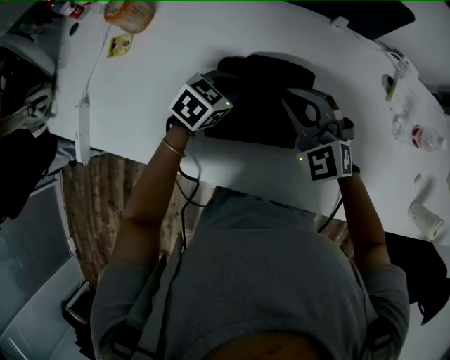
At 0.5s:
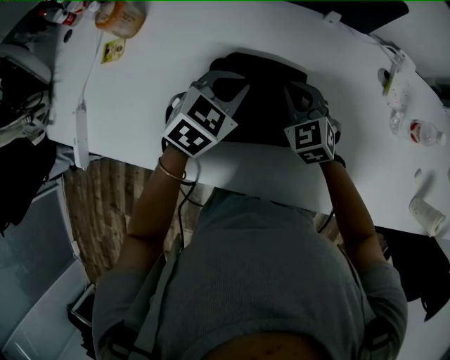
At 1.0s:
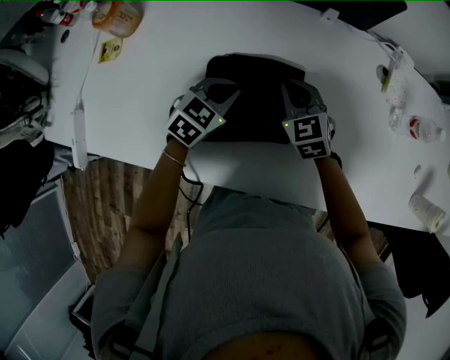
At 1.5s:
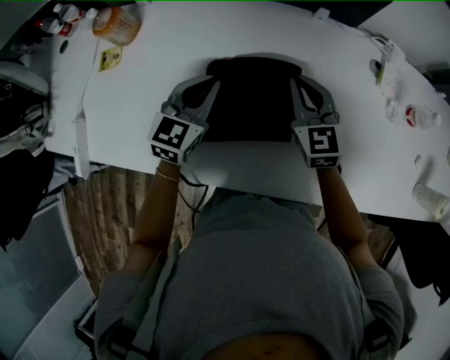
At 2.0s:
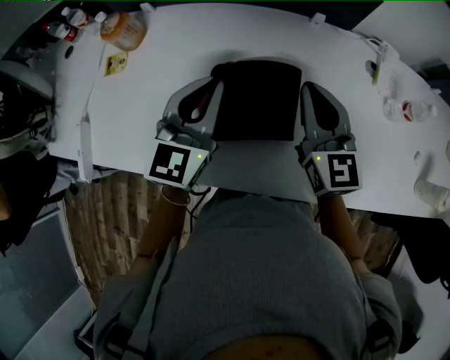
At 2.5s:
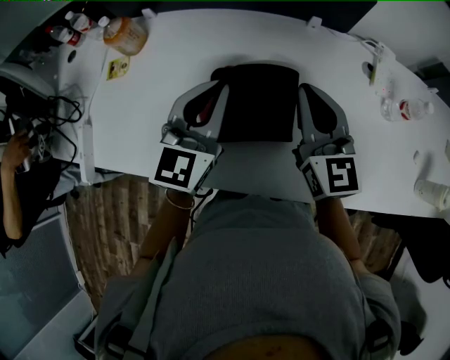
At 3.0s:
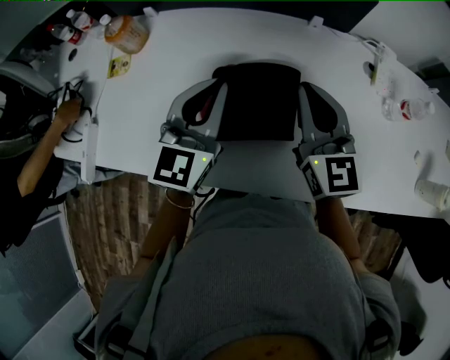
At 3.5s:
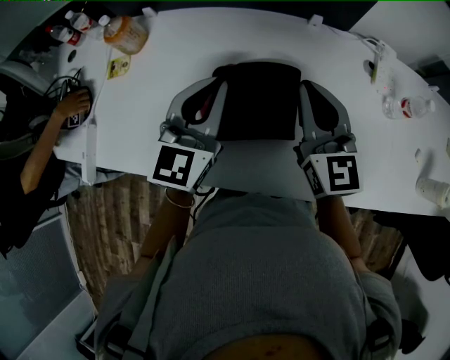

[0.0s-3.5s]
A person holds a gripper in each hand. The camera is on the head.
0.0s to 2.0s: The left gripper moves up and down over roughly 20 cm, changing direction 2 times, and tilts its fingers approximately 40 degrees upward. Meanwhile the right gripper shifts approximately 10 cm upward, and rotates roughly 50 degrees.
2.0s to 3.5s: The grippers stay close to where they were, moving slightly.

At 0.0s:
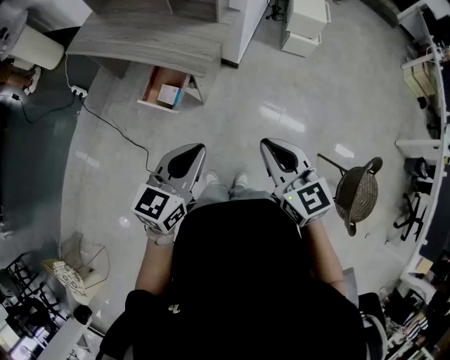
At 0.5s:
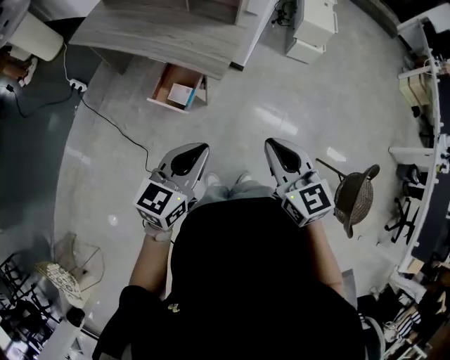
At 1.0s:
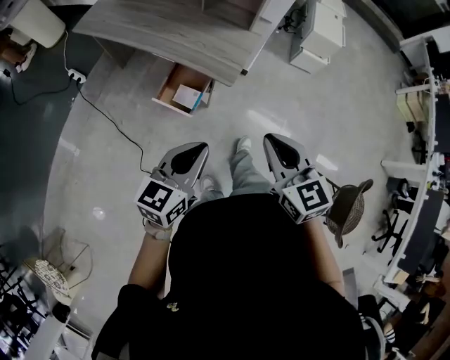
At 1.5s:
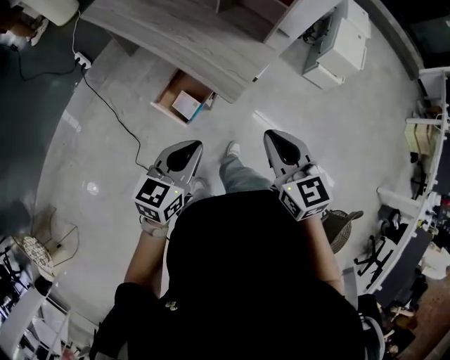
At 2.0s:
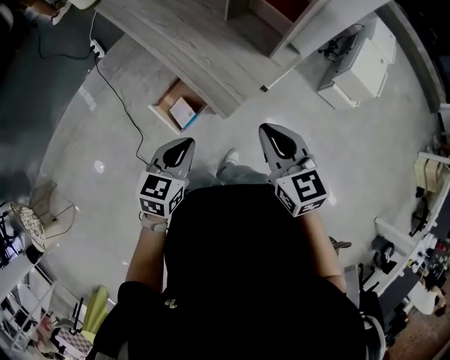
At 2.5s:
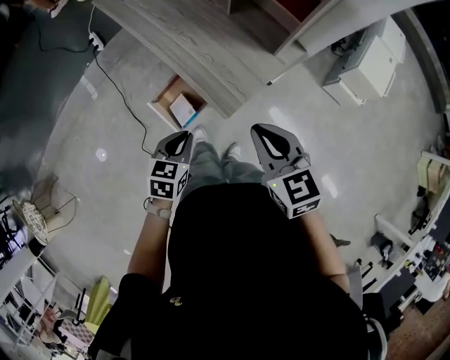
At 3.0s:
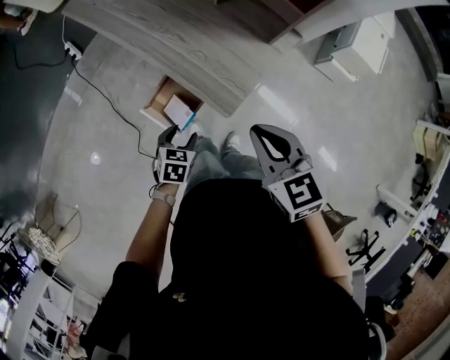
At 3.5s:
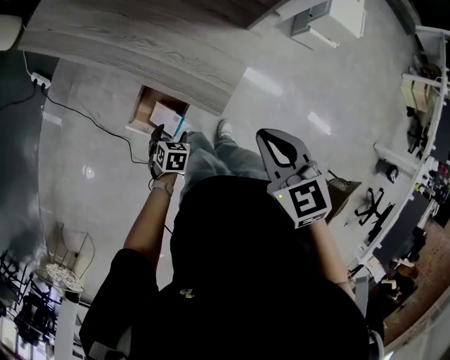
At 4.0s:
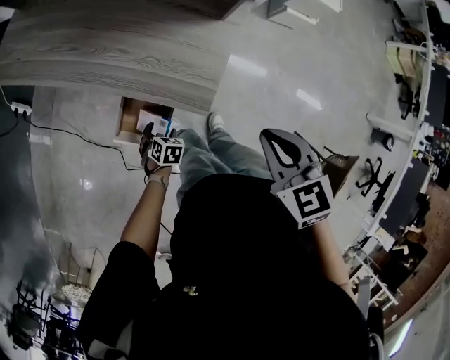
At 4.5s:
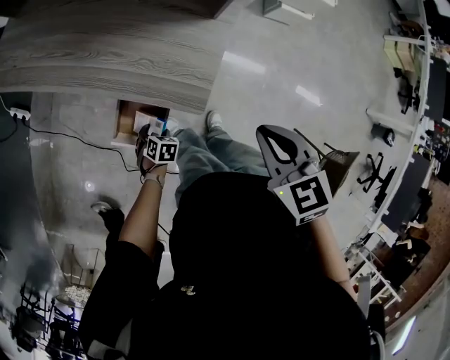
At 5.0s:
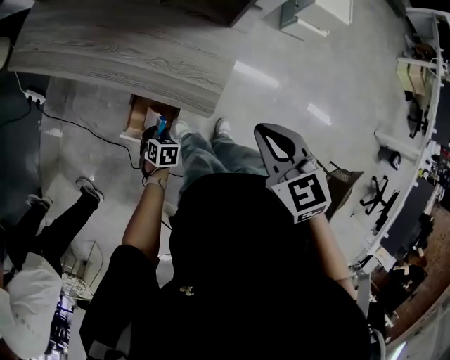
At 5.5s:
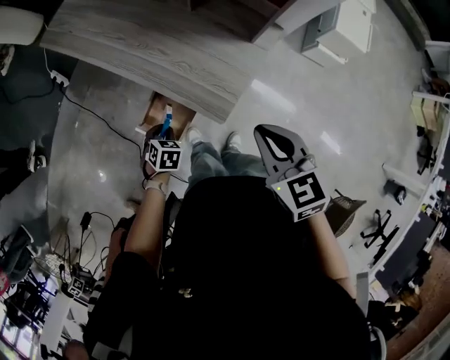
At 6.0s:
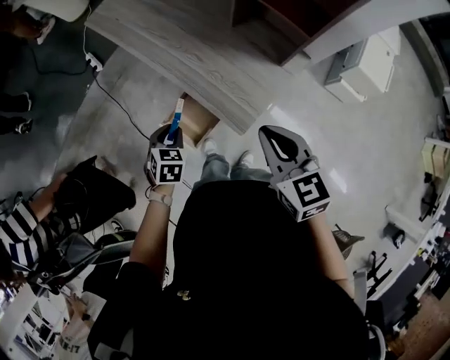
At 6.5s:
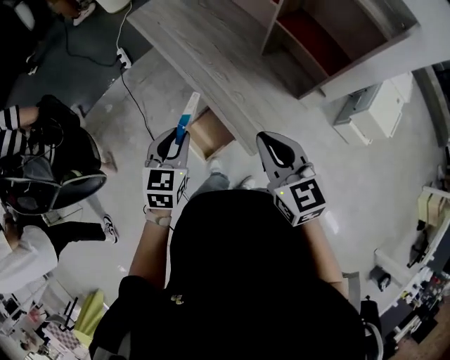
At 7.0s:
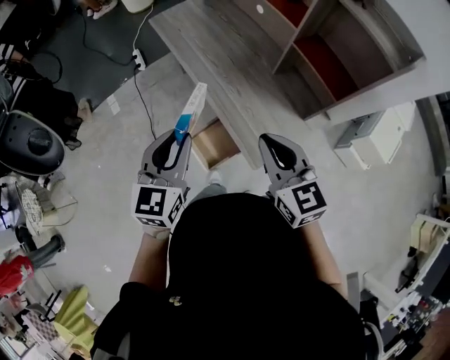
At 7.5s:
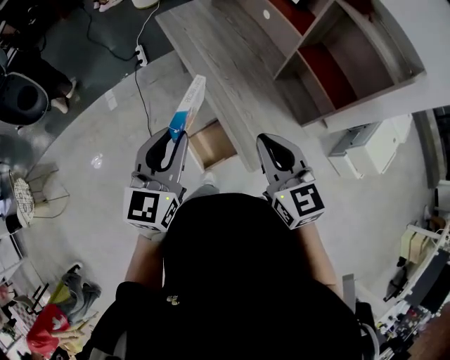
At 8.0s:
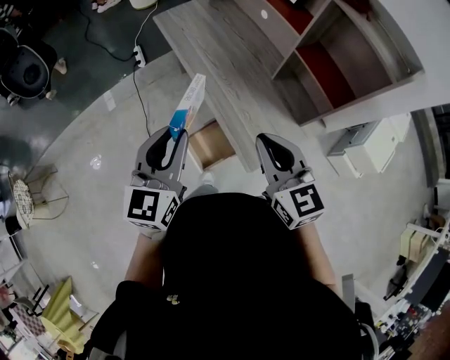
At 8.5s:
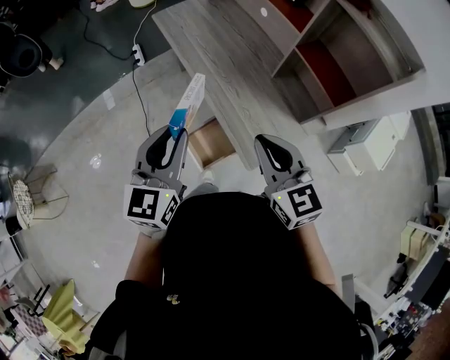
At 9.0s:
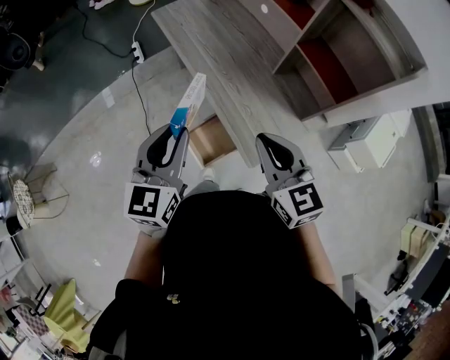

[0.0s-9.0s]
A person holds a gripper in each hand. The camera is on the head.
0.0s to 2.0s: The left gripper shifts about 25 cm forward and downward, and rotates roughly 30 degrees. Meanwhile the right gripper is displaced forward by about 35 cm, and swivels about 20 degrees.
2.0s to 4.5s: The left gripper travels downward by some 40 cm, tips its fingers downward by approximately 40 degrees, and opens up. The right gripper travels downward by about 5 cm, and rotates about 30 degrees.
4.5s to 7.0s: The right gripper moves roughly 20 cm, and tips its fingers upward by some 30 degrees; the left gripper heads upward, covering roughly 50 cm, points its fingers about 60 degrees further upward, and closes its fingers.
7.0s to 9.0s: There are only small adjustments of the grippers.

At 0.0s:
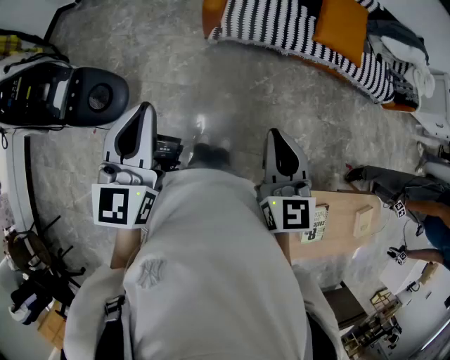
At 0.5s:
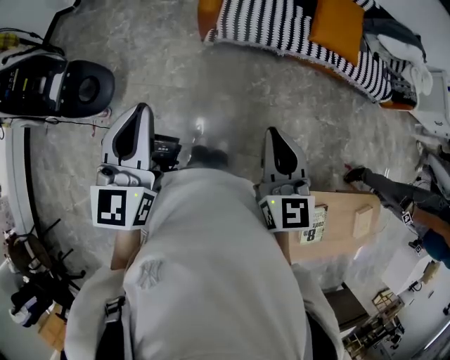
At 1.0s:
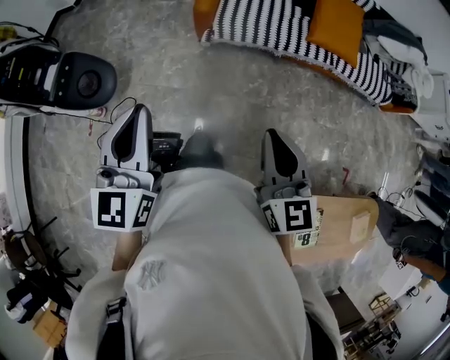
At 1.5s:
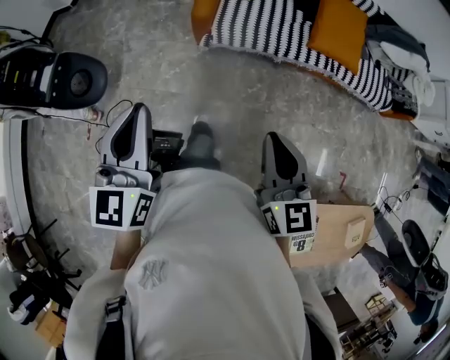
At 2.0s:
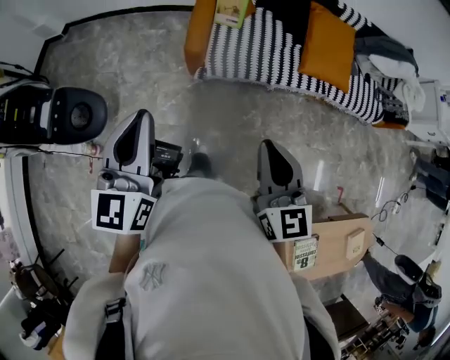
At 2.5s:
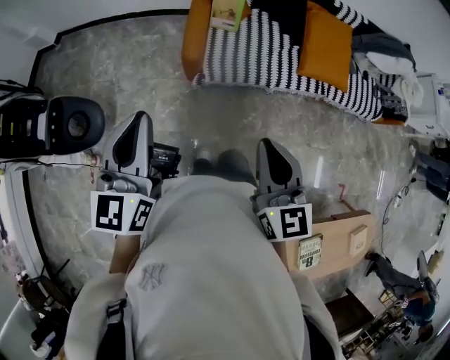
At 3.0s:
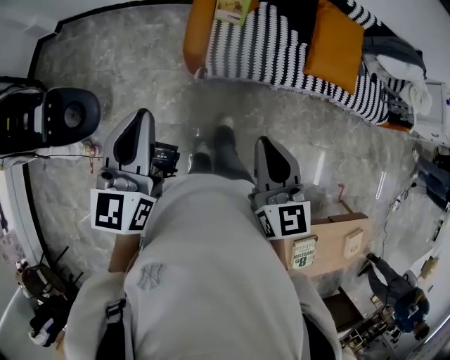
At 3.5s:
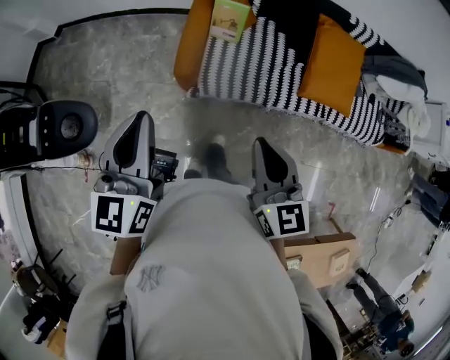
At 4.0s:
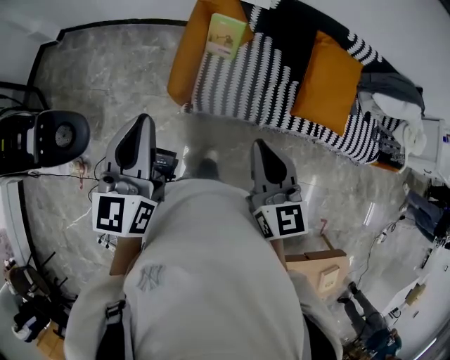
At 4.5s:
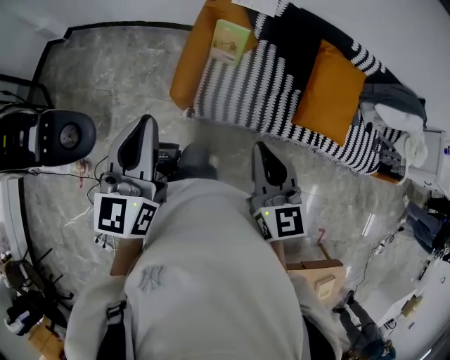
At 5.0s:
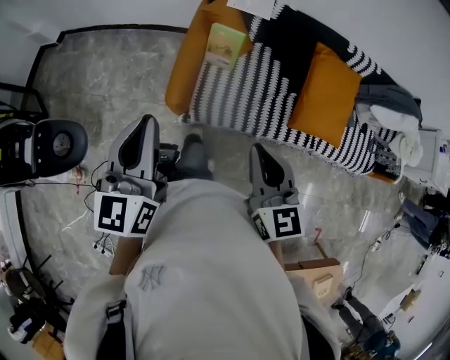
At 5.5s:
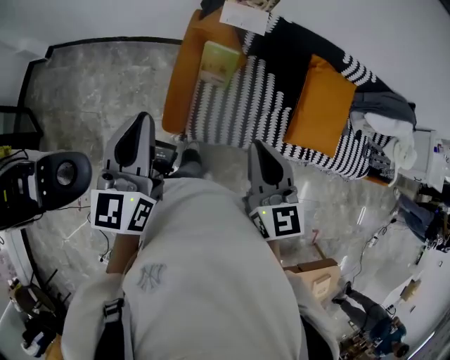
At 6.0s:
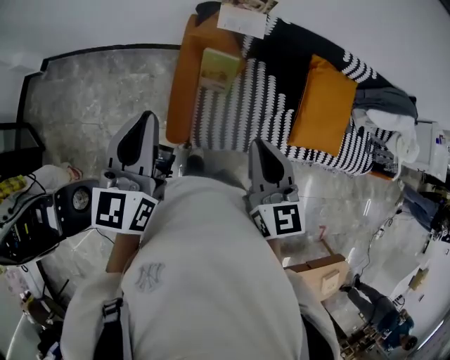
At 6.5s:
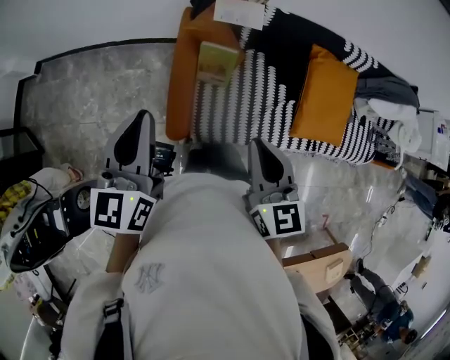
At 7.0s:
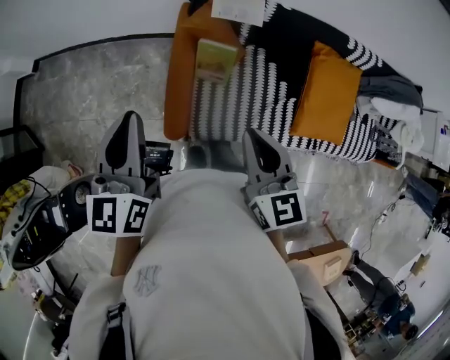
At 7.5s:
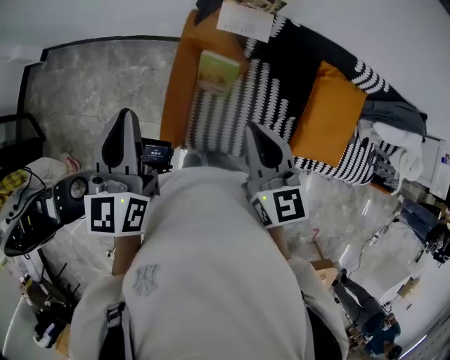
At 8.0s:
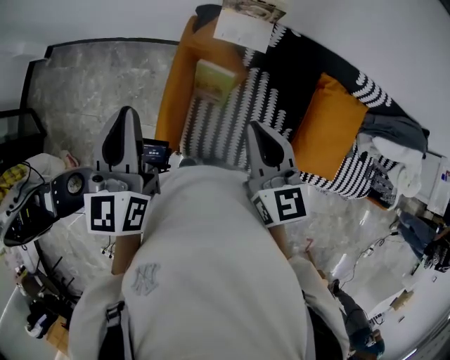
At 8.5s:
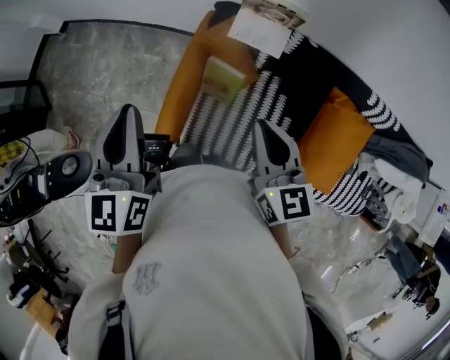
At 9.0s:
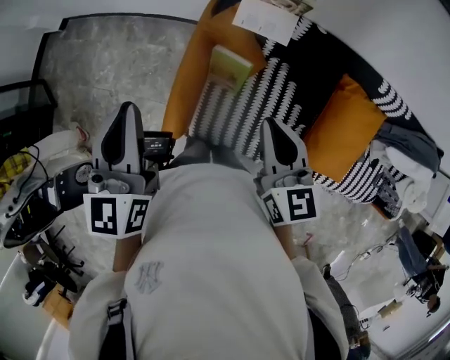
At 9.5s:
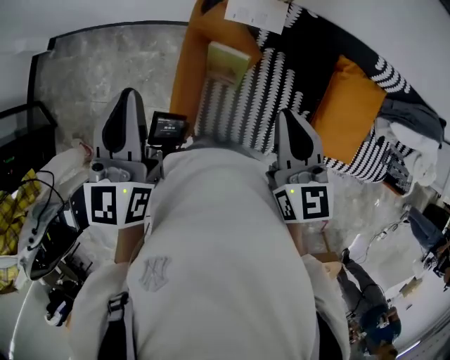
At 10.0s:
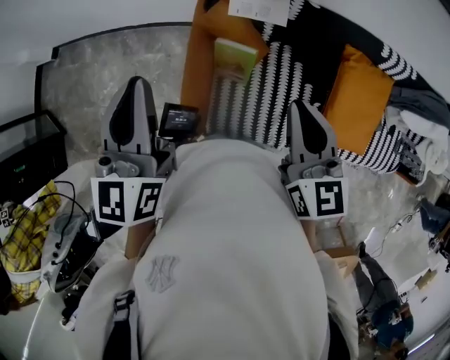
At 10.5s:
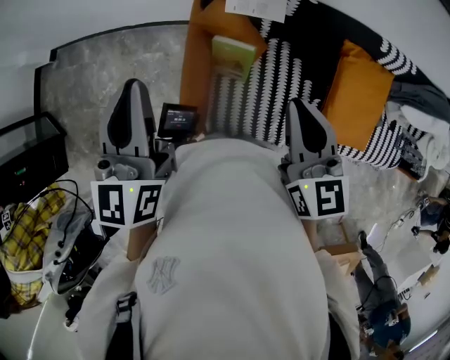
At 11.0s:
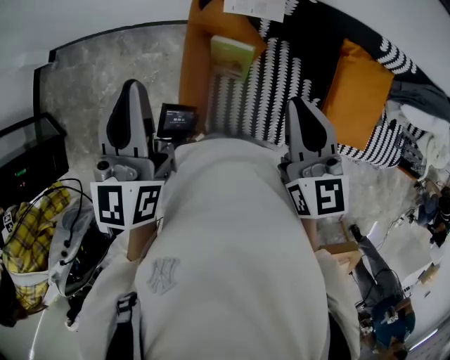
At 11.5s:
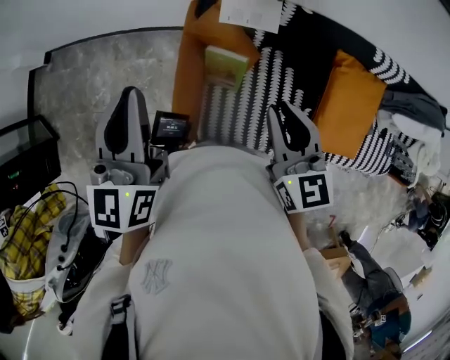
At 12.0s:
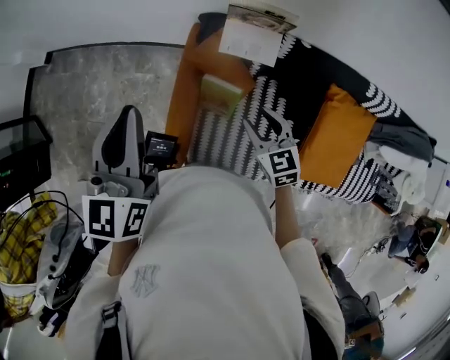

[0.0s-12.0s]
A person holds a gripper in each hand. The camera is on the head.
0.0s to 2.0s: Both grippers move forward, about 15 cm.
2.0s to 4.0s: The right gripper shifts roughly 25 cm forward. Meanwhile the left gripper travels forward and to the right by some 25 cm.
4.0s to 6.0s: Both grippers travel together forward, roughly 20 cm.
6.0s to 8.0s: The two grippers go about 15 cm forward and to the right.
8.0s to 10.0s: The grippers make only small movements.
10.0s to 12.0s: The left gripper heads to the left, covering about 10 cm. Meanwhile the right gripper moves downward, forward and to the left, some 15 cm, changes its angle by about 30 degrees, and opens up.

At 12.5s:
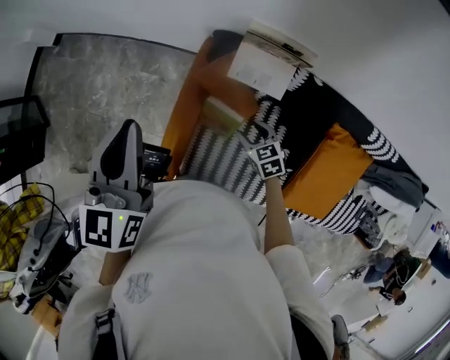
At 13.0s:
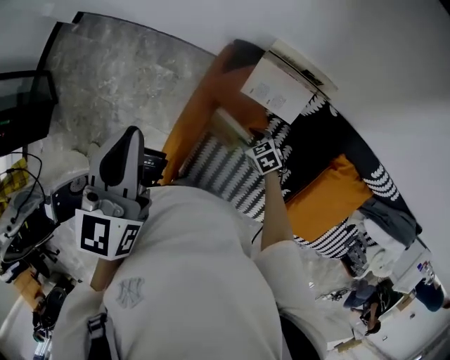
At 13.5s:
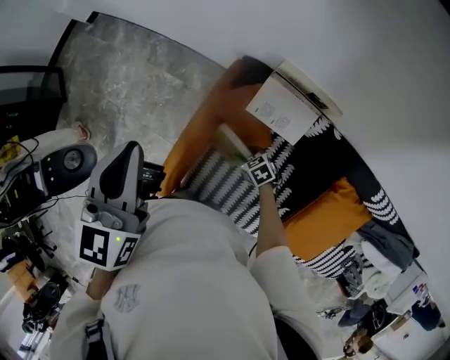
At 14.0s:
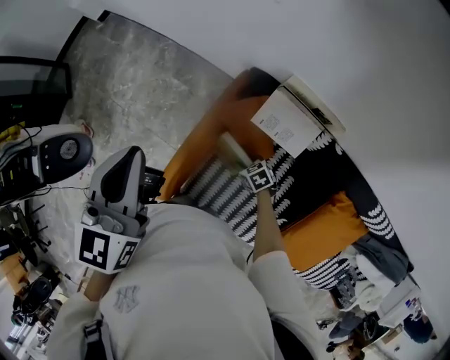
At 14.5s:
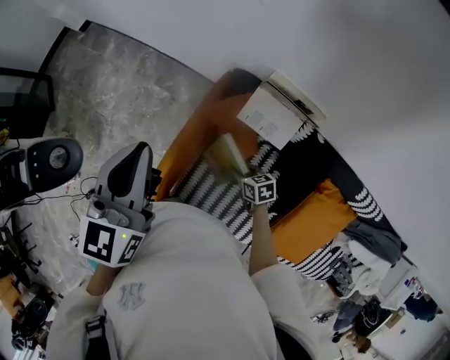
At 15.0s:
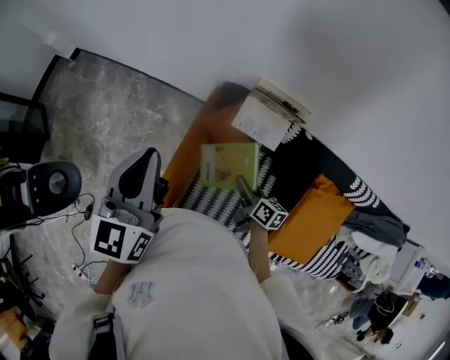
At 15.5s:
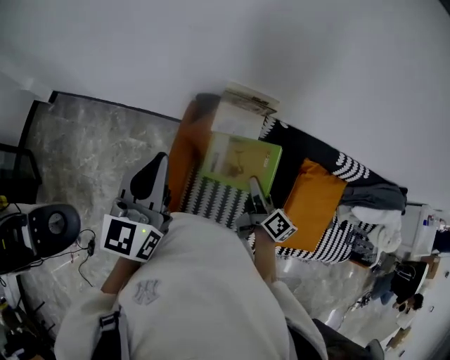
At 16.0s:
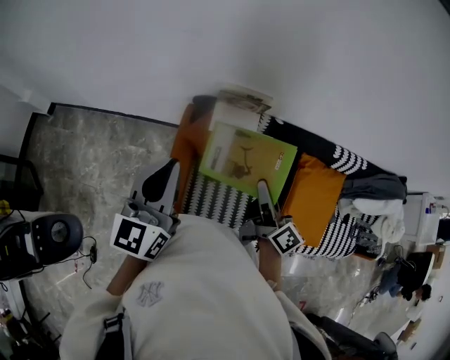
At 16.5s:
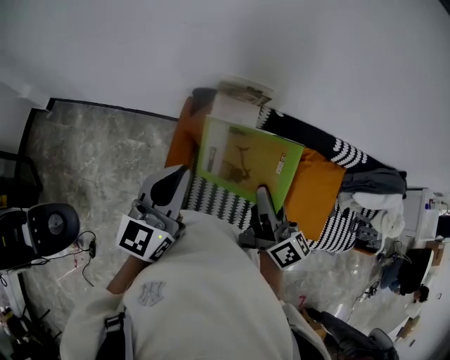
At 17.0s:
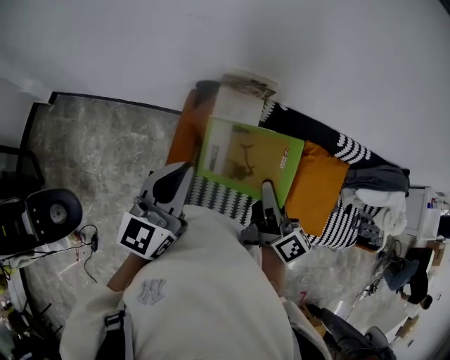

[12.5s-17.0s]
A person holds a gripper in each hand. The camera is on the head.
12.5s to 14.5s: The right gripper is displaced downward by some 10 cm, and rotates about 20 degrees.
14.5s to 17.0s: The right gripper goes roughly 35 cm upward, and tips its fingers upward by roughly 50 degrees. Meanwhile the left gripper changes place by about 15 cm, and swivels approximately 30 degrees.
